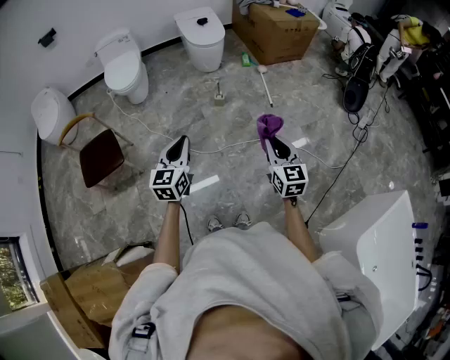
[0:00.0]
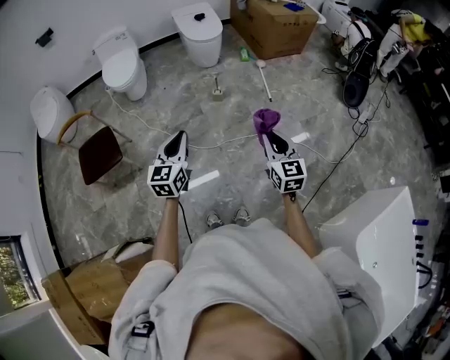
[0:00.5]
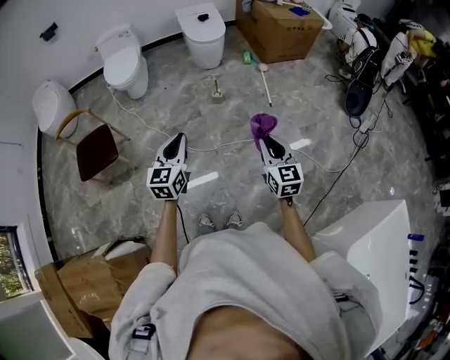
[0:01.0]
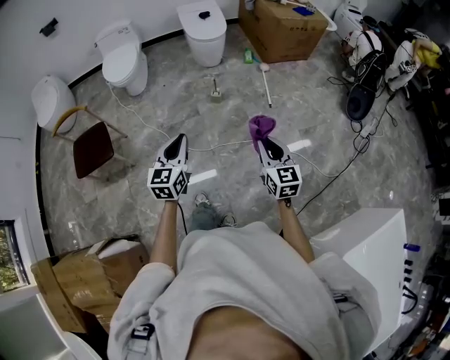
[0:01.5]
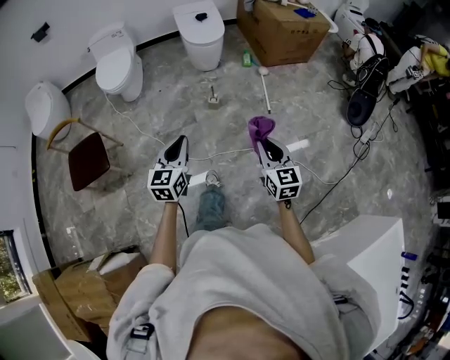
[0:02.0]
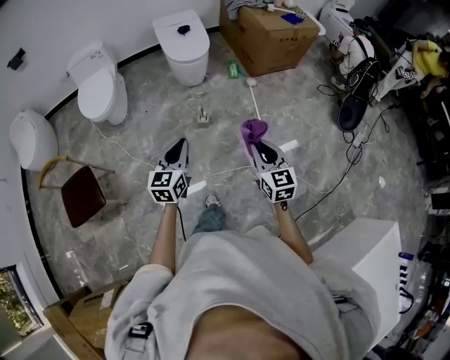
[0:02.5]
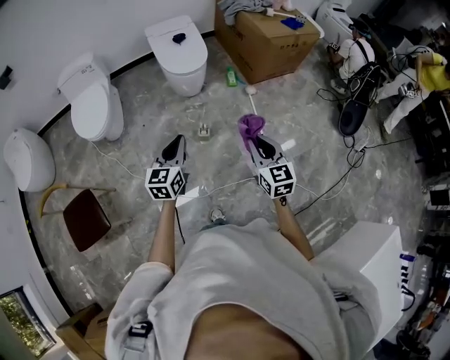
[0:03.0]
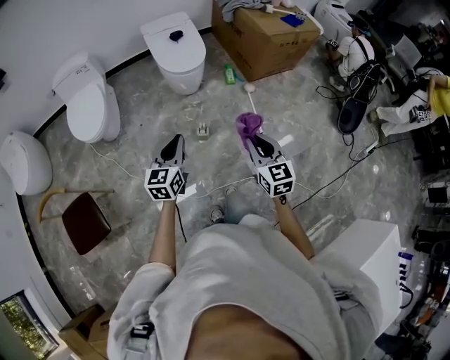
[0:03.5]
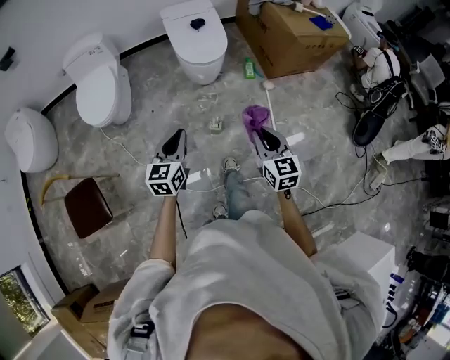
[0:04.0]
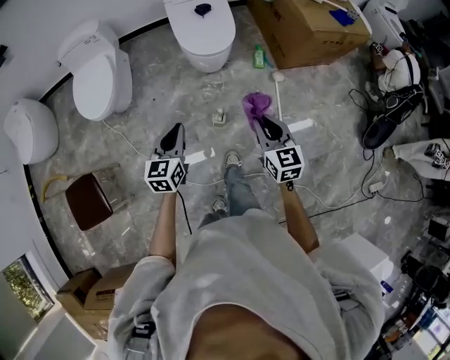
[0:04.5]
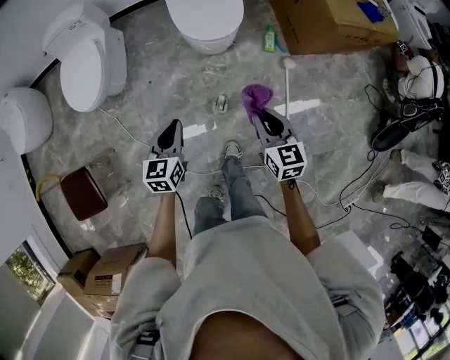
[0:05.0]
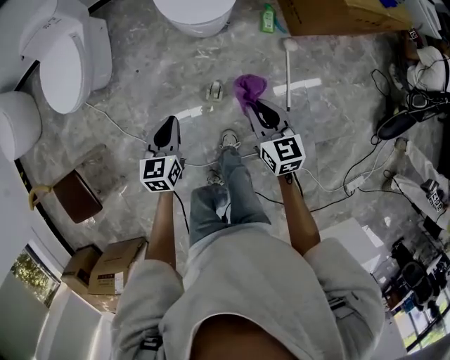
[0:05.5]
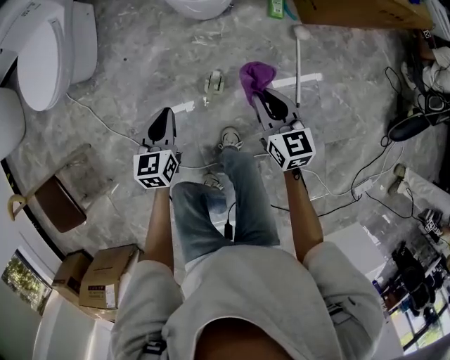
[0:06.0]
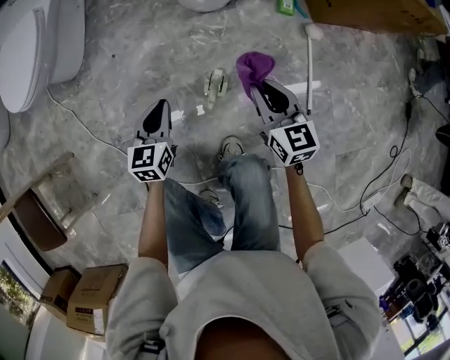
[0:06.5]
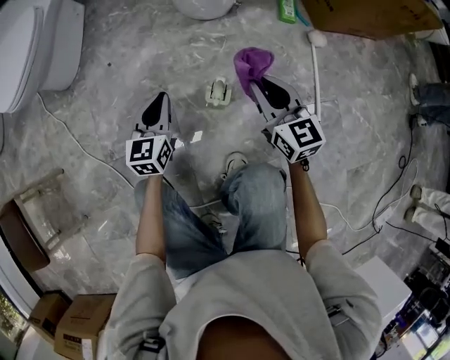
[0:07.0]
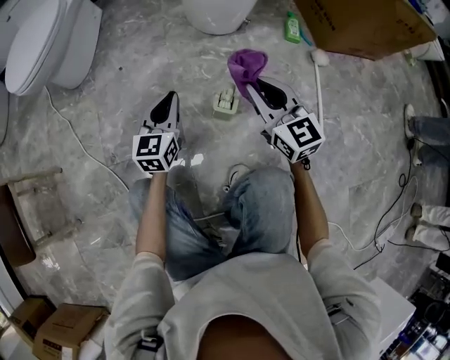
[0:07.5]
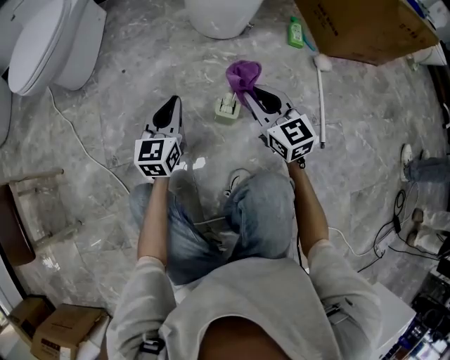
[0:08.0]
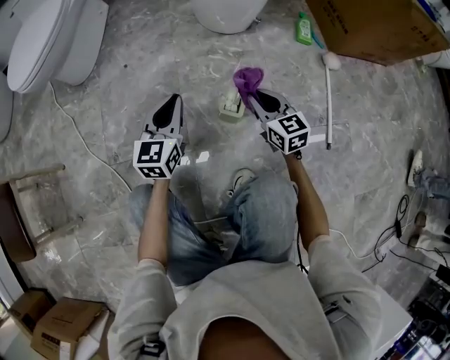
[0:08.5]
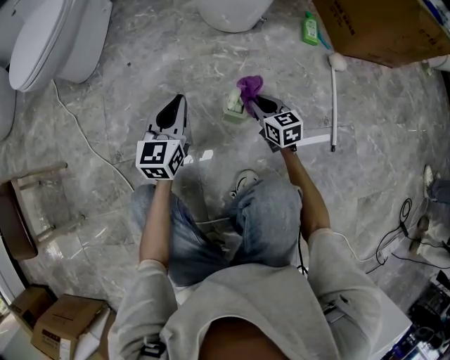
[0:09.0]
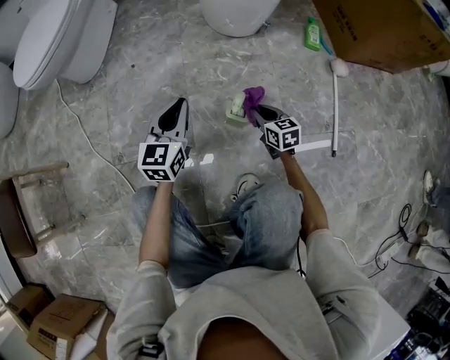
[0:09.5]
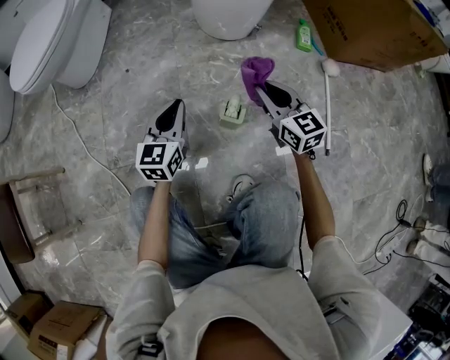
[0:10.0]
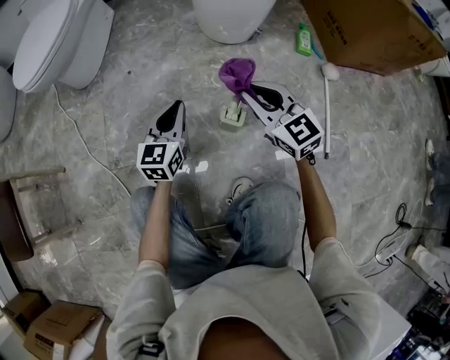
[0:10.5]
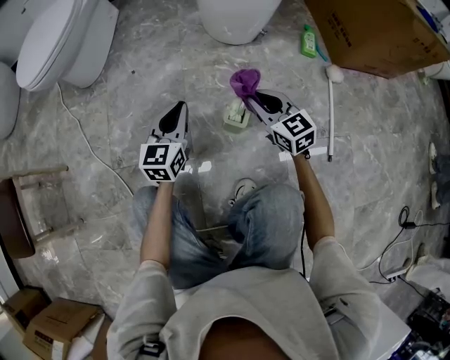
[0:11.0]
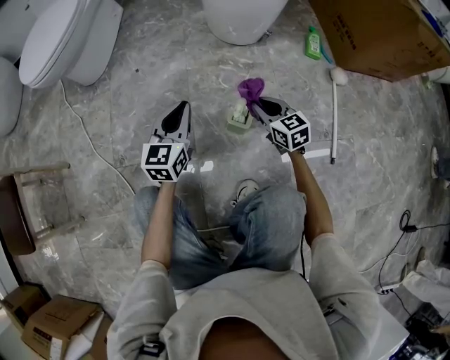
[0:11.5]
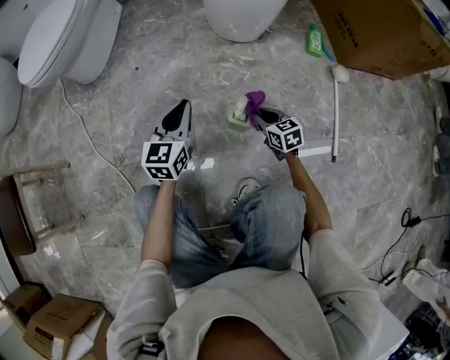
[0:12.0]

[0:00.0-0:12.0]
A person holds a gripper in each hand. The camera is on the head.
0:00.0 to 0:02.0: The grippers both shift forward and to the right by roughly 15 cm.
0:02.0 to 0:04.0: The grippers both shift forward by some 35 cm.
0:04.0 to 0:06.0: Both grippers travel together downward and forward, about 35 cm.
0:06.0 to 0:08.0: Both grippers move downward, approximately 20 cm. The left gripper changes its angle by about 20 degrees; the right gripper changes its angle by approximately 20 degrees.
0:08.0 to 0:10.0: The right gripper reaches roughly 20 cm downward, then returns.
0:10.0 to 0:12.0: The right gripper travels downward by about 20 cm, and turns by approximately 30 degrees.

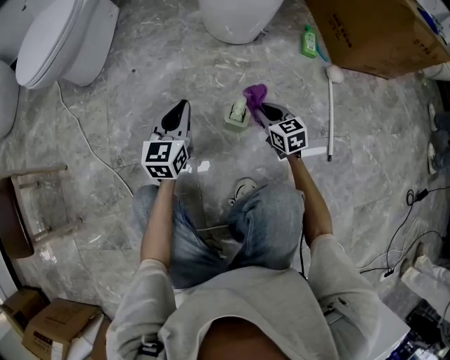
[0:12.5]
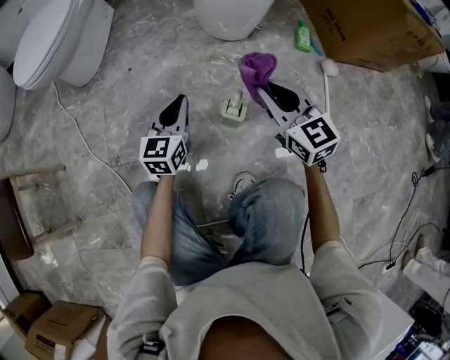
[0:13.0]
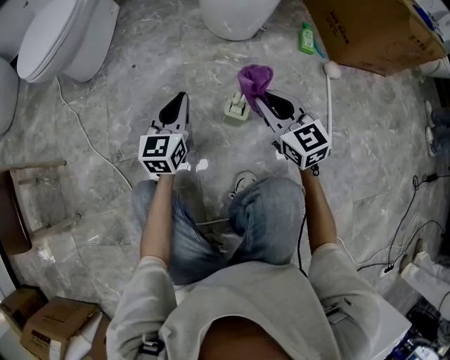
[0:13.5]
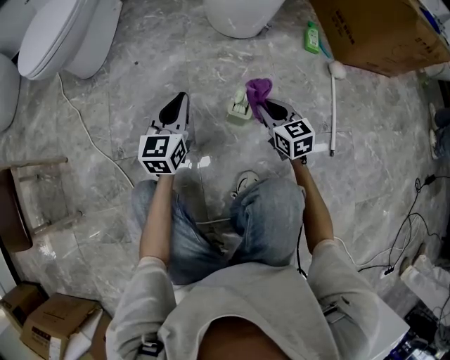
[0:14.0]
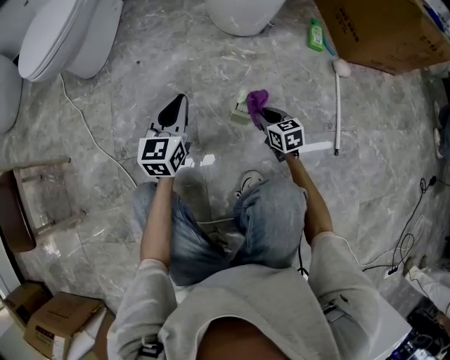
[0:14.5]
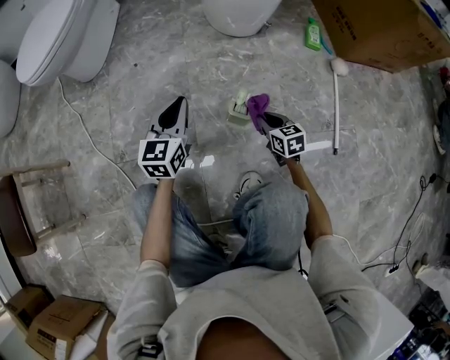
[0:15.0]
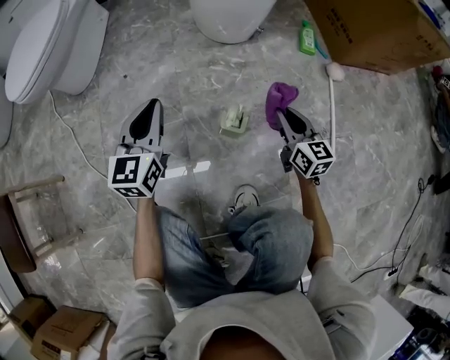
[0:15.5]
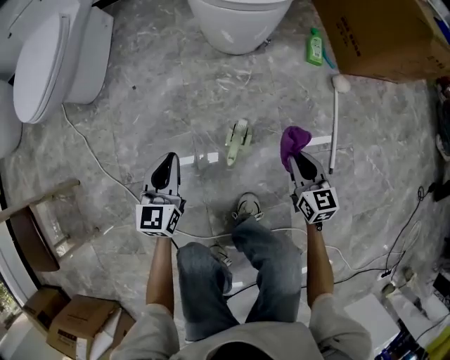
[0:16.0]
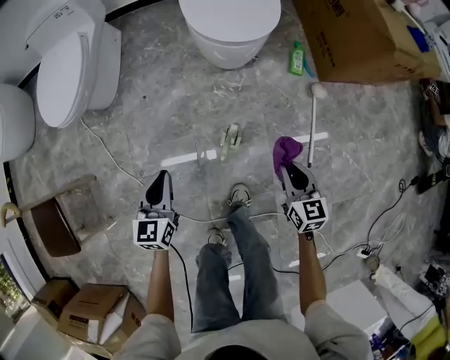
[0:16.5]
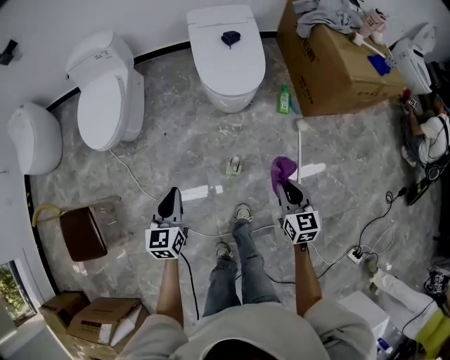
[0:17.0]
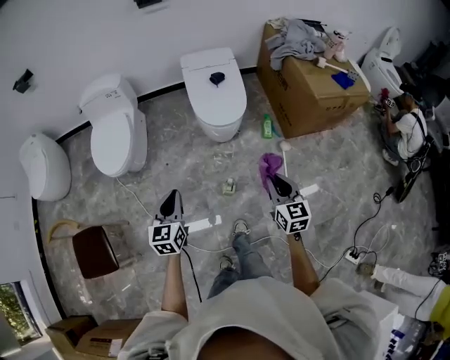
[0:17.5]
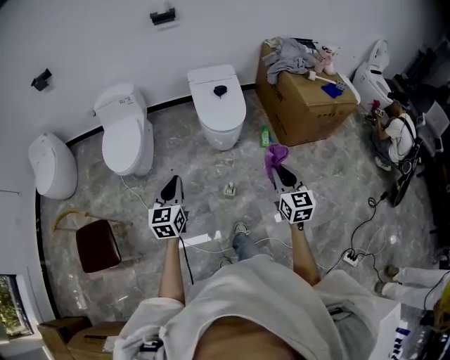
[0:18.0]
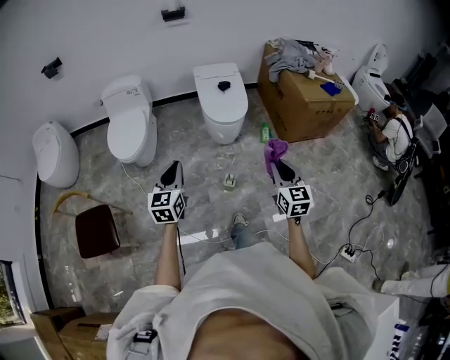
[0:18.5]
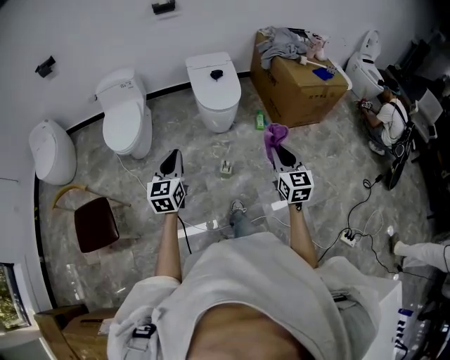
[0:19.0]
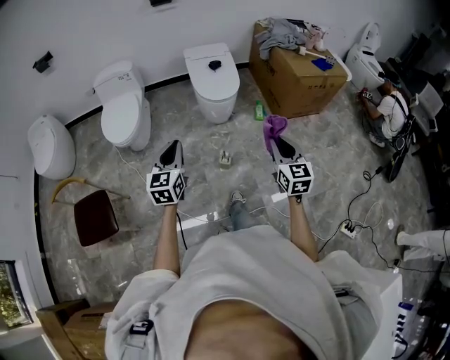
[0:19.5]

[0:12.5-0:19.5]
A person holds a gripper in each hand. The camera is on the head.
0:12.5 to 0:14.5: The right gripper goes upward and returns, roughly 20 cm each way.
0:14.5 to 0:16.0: The right gripper moves upward and to the right, some 20 cm.
0:16.0 to 0:17.5: Both grippers move upward, about 50 cm.
0:17.5 to 0:19.5: The two grippers go about 20 cm backward and upward.

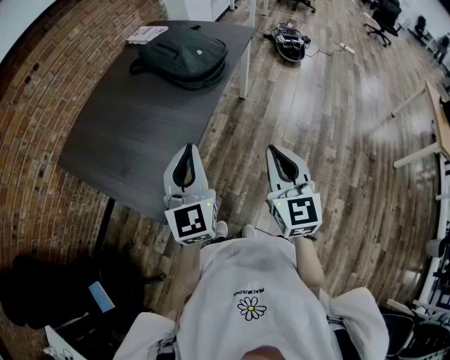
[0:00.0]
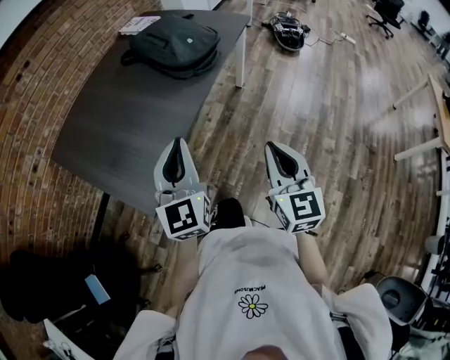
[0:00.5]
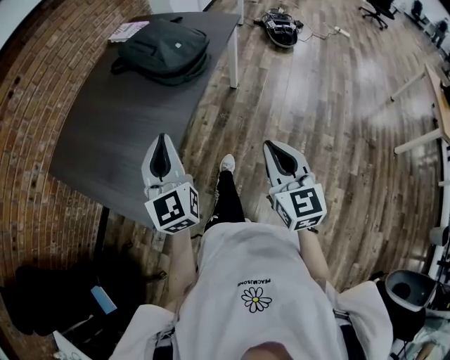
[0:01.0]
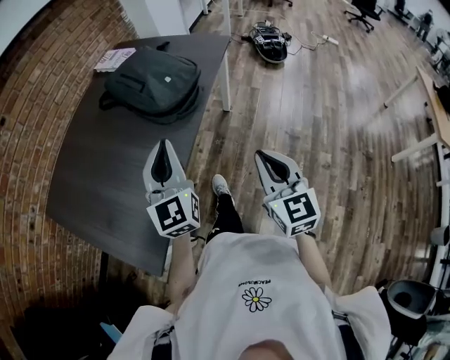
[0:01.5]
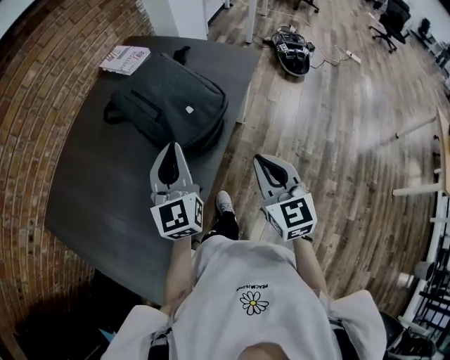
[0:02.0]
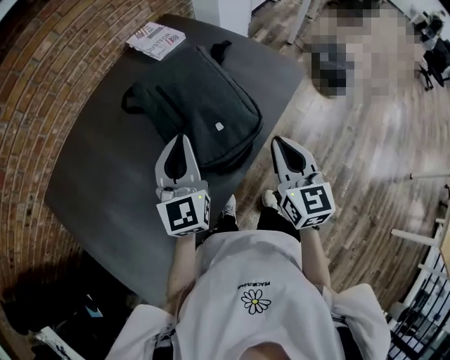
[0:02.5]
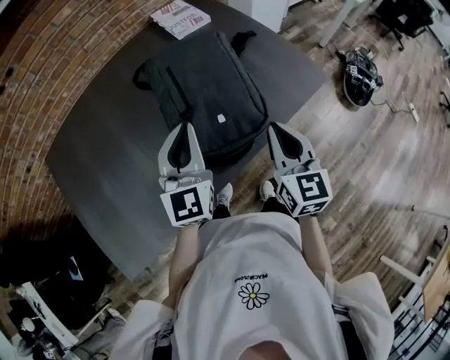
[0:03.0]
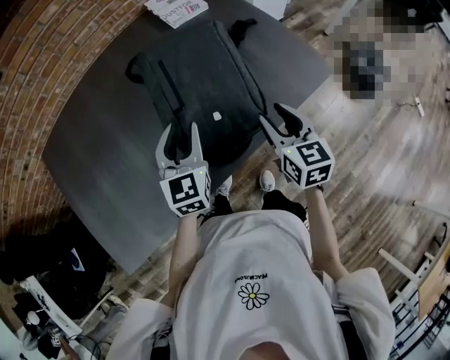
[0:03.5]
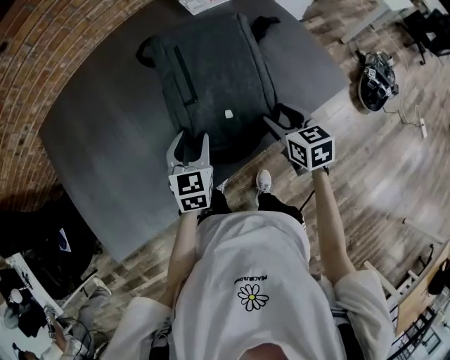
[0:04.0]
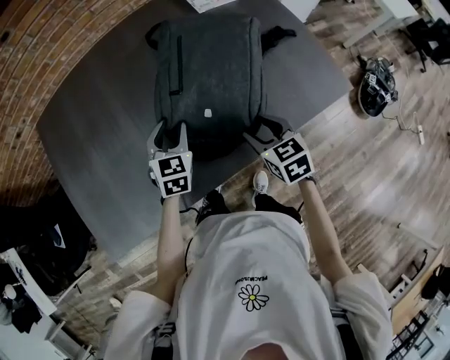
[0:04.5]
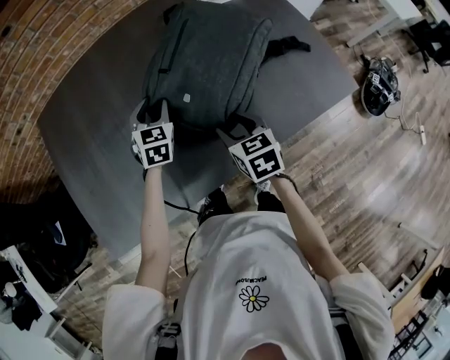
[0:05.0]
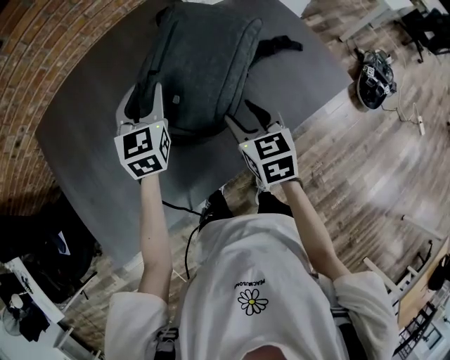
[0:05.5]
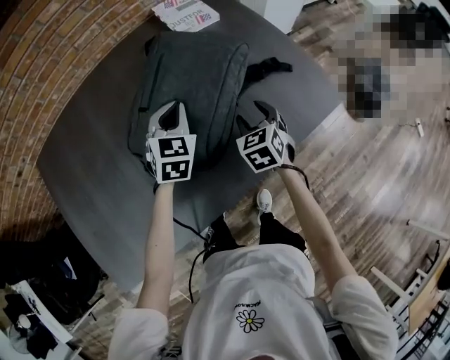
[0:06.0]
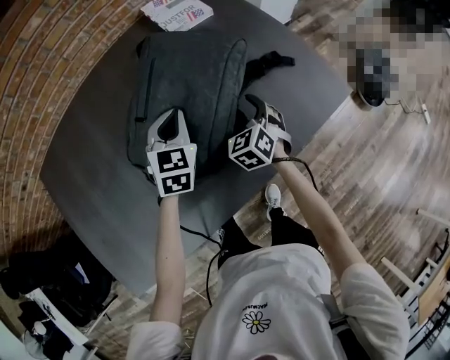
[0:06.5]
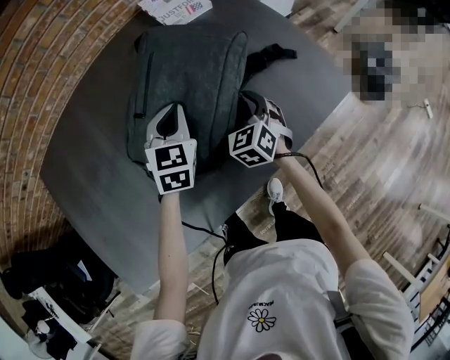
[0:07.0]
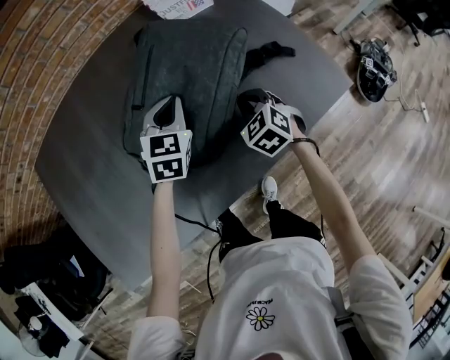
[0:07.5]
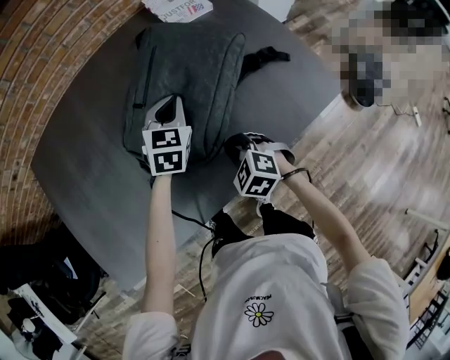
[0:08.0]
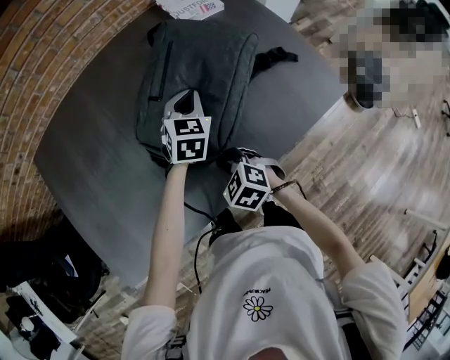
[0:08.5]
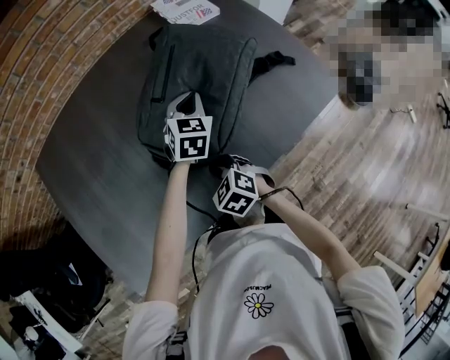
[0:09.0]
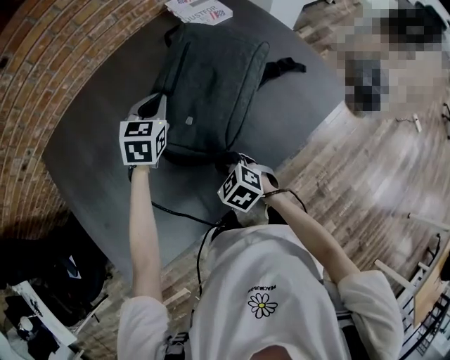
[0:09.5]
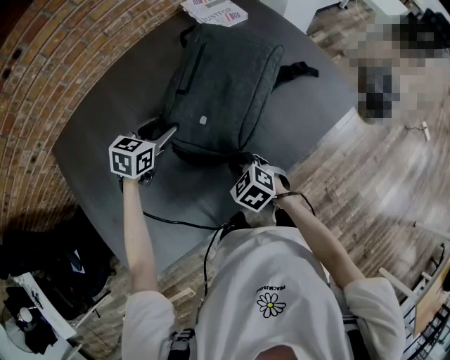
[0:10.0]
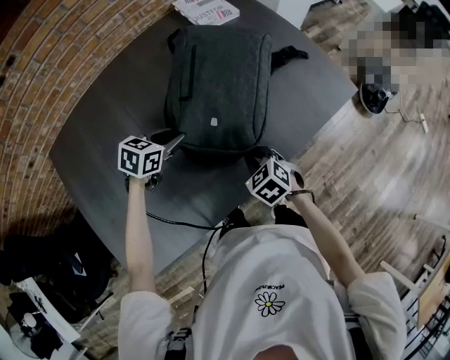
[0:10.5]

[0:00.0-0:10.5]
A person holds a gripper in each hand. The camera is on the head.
0:00.0 to 0:02.0: Both grippers move forward, about 35 cm.
0:02.0 to 0:04.0: The right gripper moves some 30 cm, turns by some 50 degrees, and opens, while the left gripper is displaced downward by approximately 20 cm, swivels some 40 degrees, and opens up.
0:04.0 to 0:06.5: The right gripper moves roughly 15 cm, and rotates approximately 40 degrees. Meanwhile the left gripper goes upward and returns, approximately 10 cm each way, and closes.
0:06.5 to 0:08.5: The right gripper goes about 25 cm backward and to the left, rotates some 40 degrees, and closes up.
0:08.5 to 0:10.5: The left gripper moves some 15 cm, swivels some 40 degrees, and opens.
